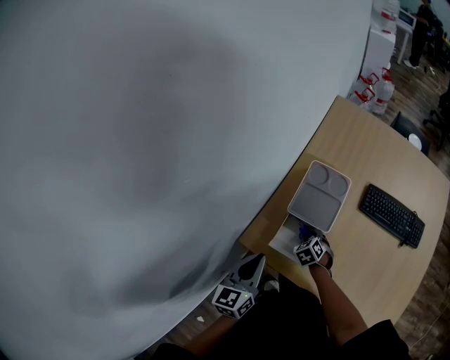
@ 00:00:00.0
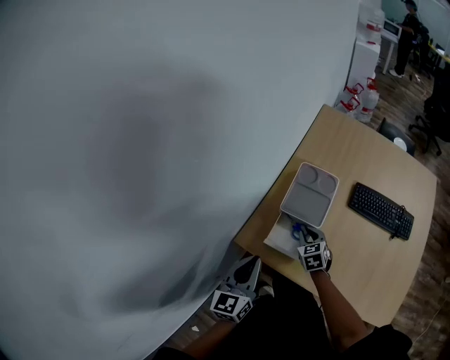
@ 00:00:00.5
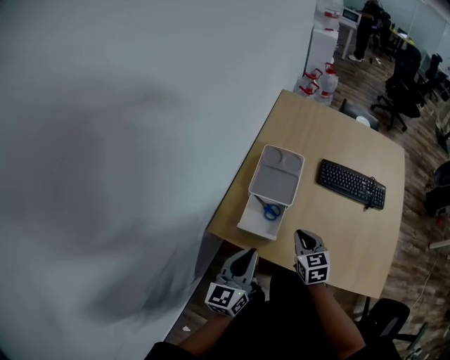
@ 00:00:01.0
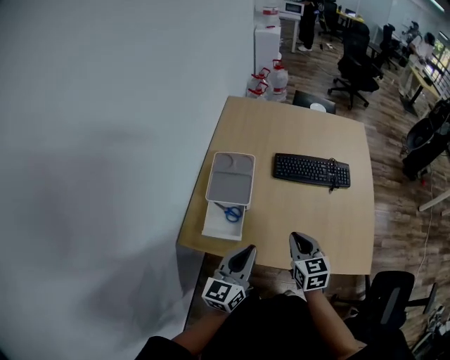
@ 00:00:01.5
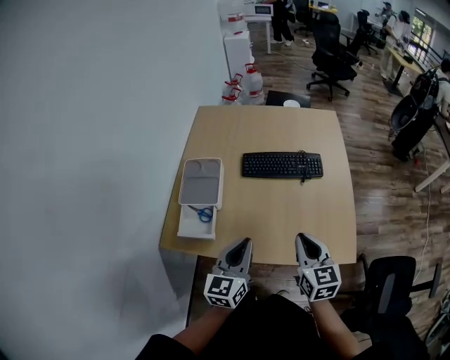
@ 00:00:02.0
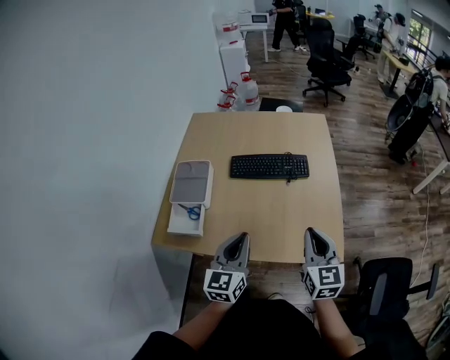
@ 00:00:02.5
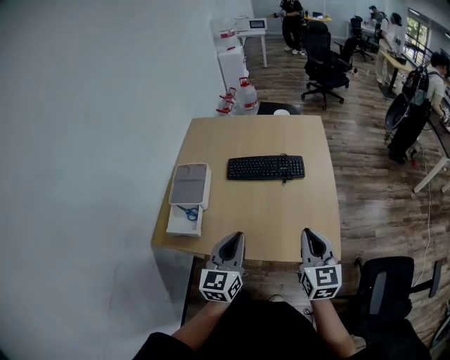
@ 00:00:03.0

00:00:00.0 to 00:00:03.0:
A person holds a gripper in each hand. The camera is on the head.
00:00:00.0 to 00:00:01.5: The left gripper is displaced to the right by some 20 cm, and rotates approximately 30 degrees; the right gripper travels upward, to the right and backward by about 35 cm, and points its fingers approximately 30 degrees further upward.
00:00:01.5 to 00:00:03.0: The left gripper travels to the right by roughly 20 cm, while the right gripper is displaced to the right and upward by roughly 30 cm, and changes its angle by some 20 degrees.

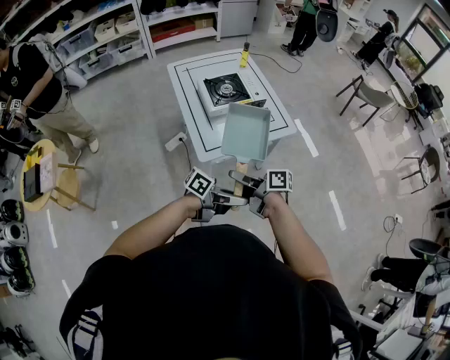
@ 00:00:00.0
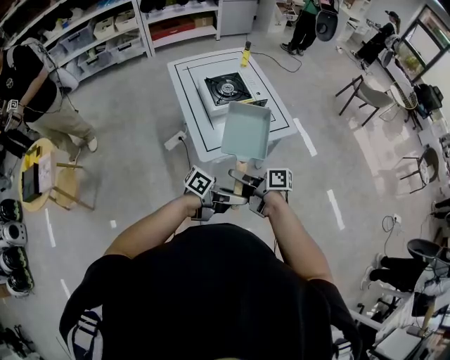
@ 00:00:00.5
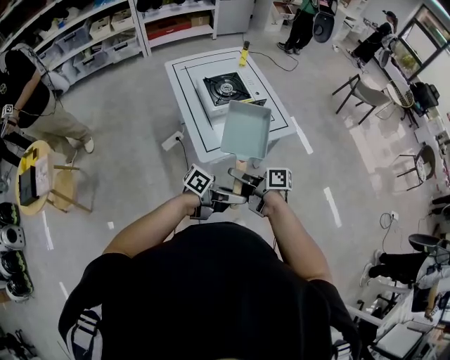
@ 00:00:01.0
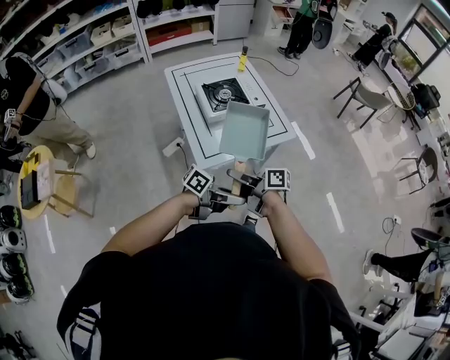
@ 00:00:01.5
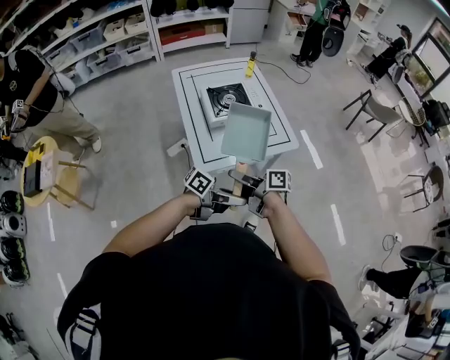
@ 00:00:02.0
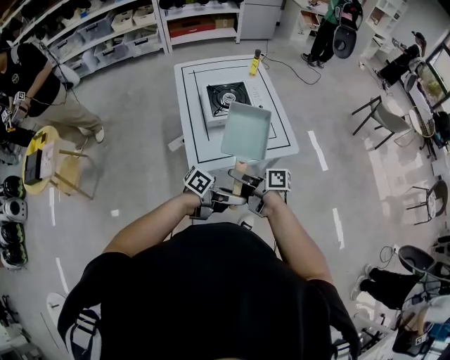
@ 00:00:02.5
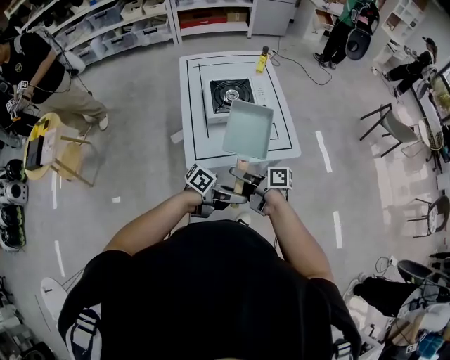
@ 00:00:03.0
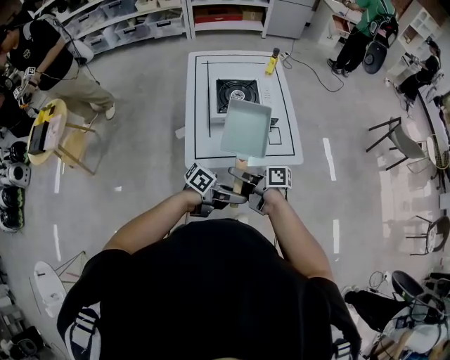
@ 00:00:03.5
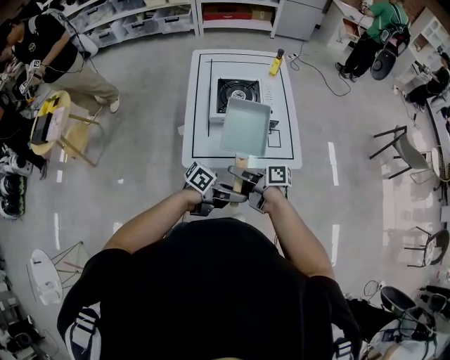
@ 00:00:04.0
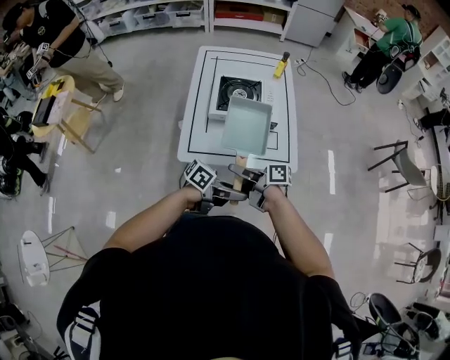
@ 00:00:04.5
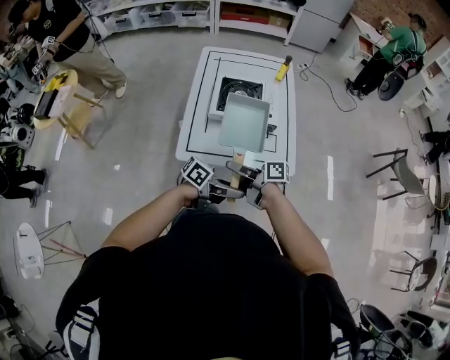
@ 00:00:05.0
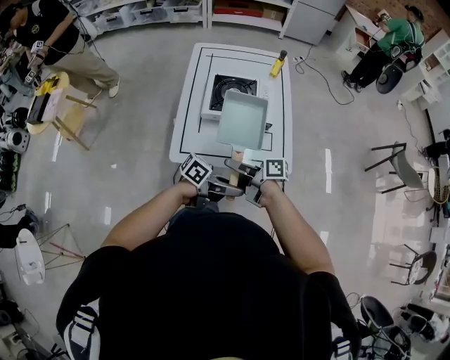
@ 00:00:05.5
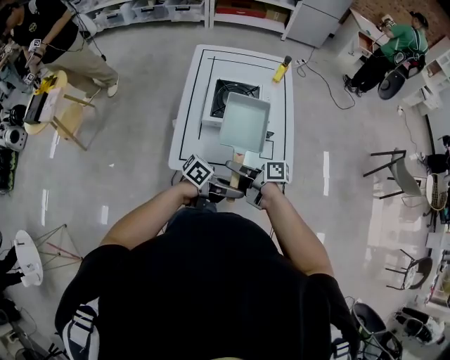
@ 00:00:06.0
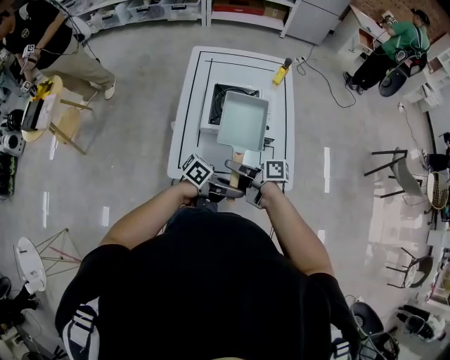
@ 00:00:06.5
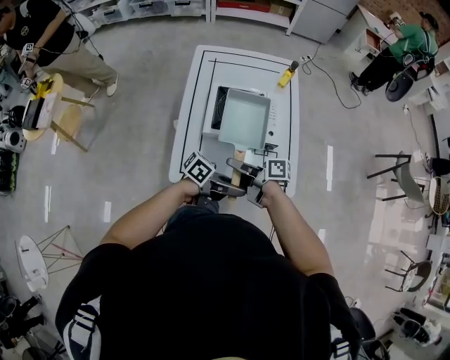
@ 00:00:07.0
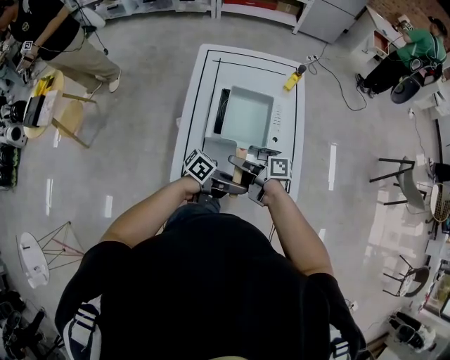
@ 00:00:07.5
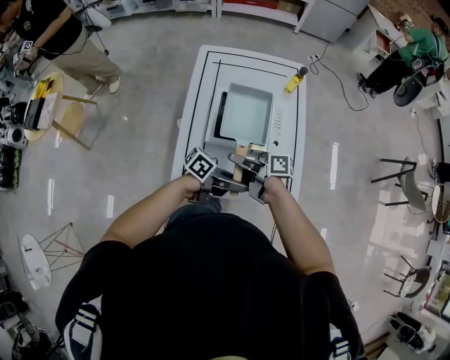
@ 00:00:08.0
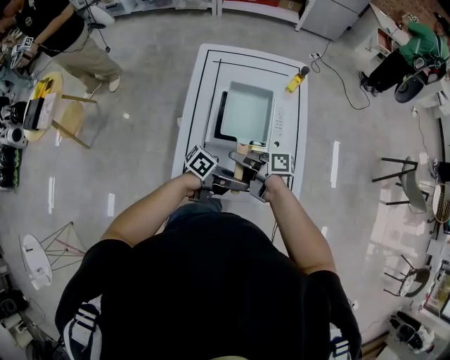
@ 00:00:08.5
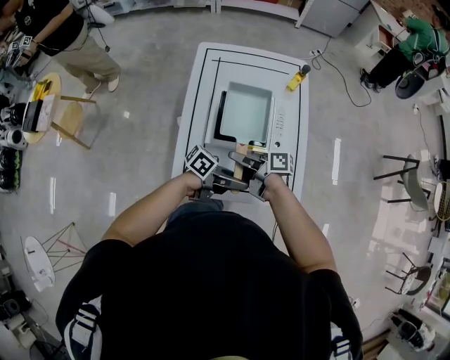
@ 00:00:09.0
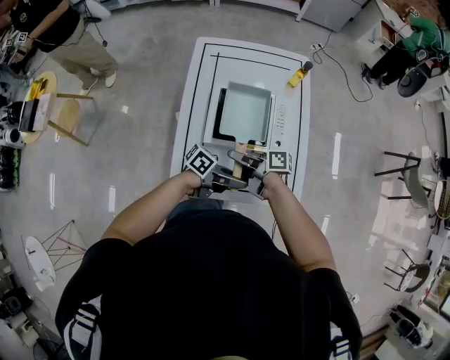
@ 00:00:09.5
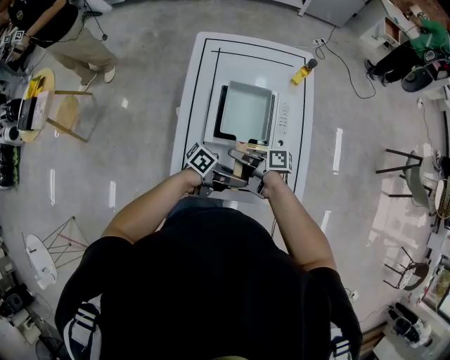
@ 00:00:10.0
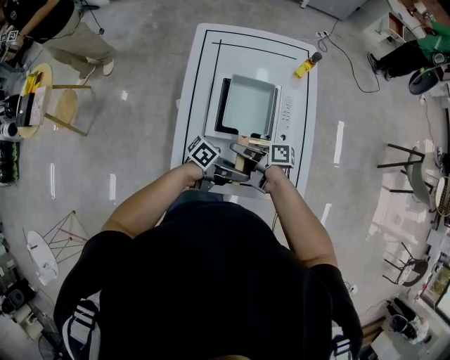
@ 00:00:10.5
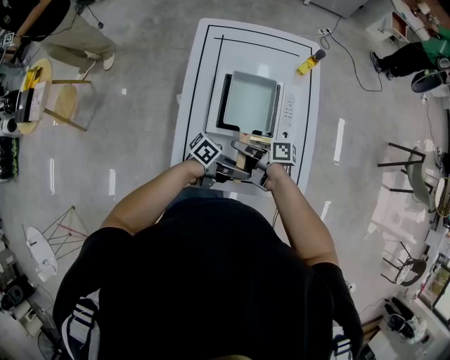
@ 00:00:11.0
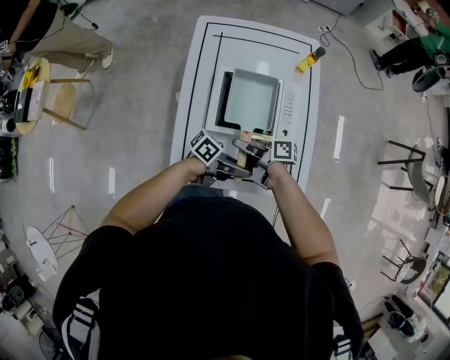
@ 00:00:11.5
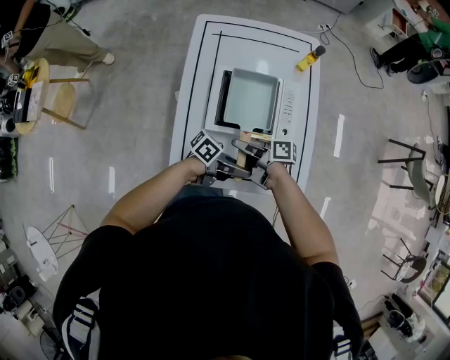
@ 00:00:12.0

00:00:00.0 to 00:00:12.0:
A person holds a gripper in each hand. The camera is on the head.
00:00:00.0 to 00:00:02.0: The left gripper changes place by about 5 cm.
00:00:02.0 to 00:00:04.0: The left gripper ends up roughly 15 cm from where it was.
00:00:04.0 to 00:00:06.0: The left gripper ends up roughly 10 cm from where it was.
00:00:06.0 to 00:00:08.0: The left gripper shifts by about 15 cm.
00:00:08.0 to 00:00:10.0: The left gripper moves about 5 cm.

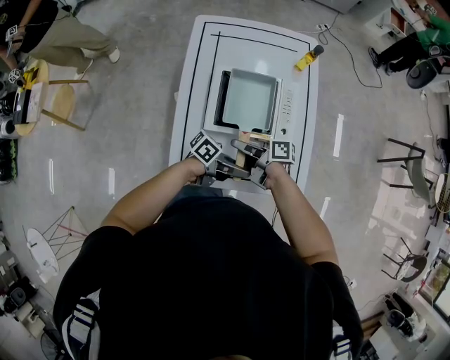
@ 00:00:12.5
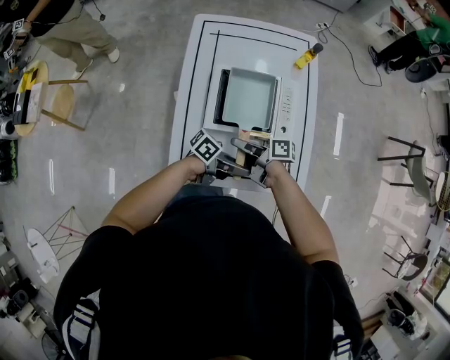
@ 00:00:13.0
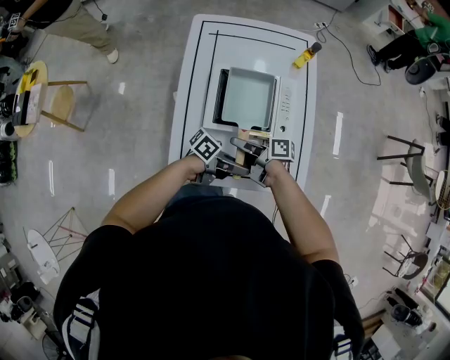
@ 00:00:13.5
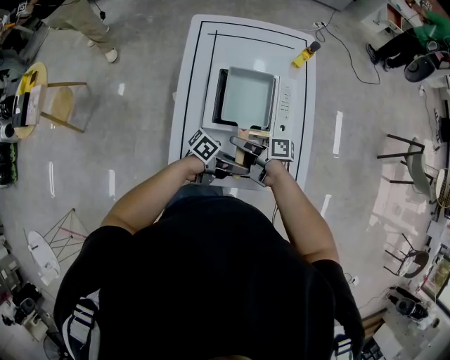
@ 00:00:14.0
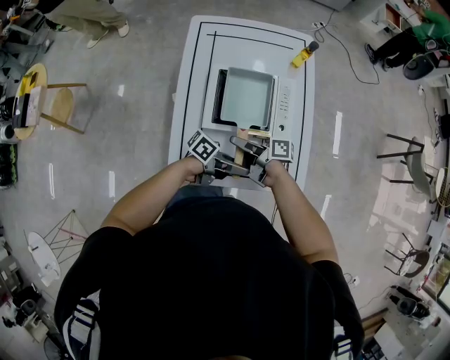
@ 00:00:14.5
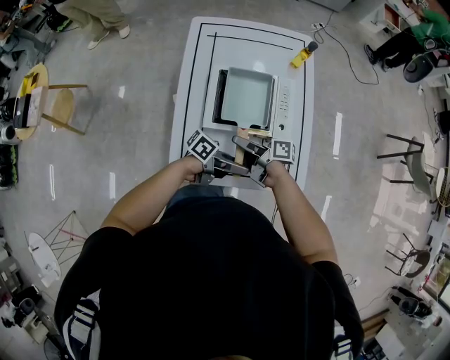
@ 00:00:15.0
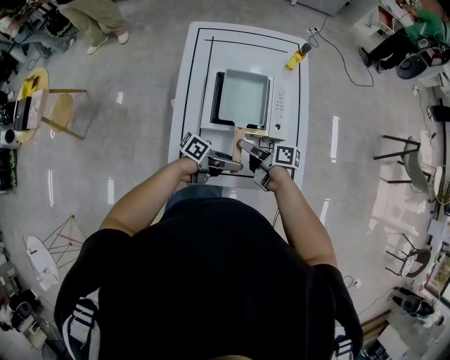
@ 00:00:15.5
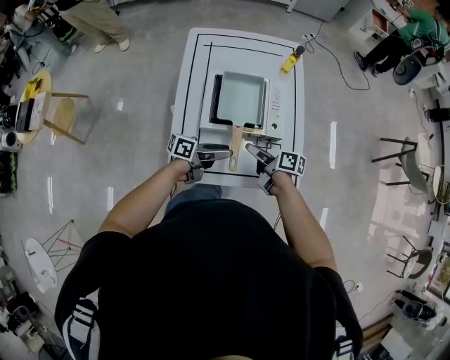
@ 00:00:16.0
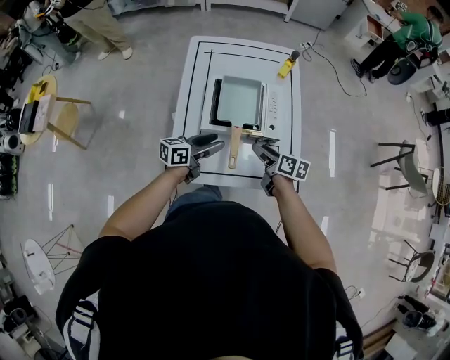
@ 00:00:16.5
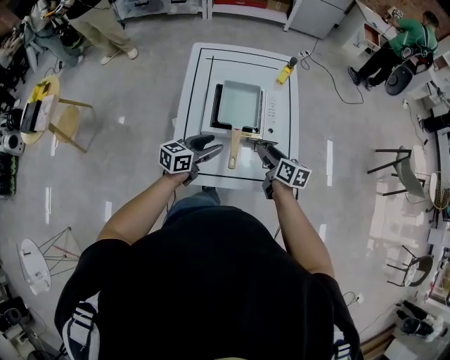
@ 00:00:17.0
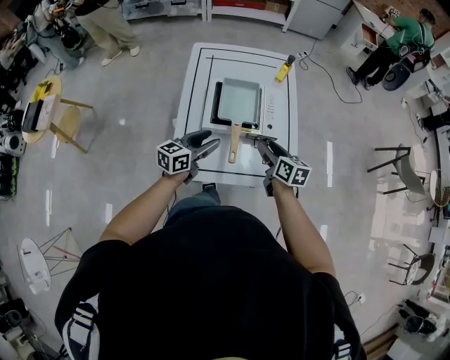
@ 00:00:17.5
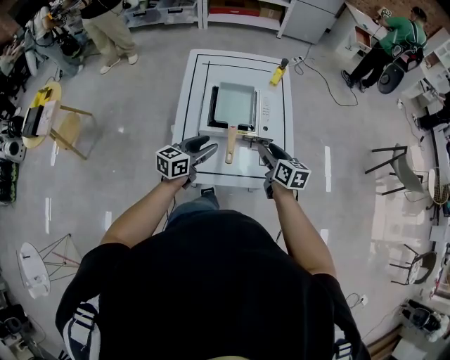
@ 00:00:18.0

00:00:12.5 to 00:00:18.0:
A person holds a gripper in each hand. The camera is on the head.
00:00:14.5 to 00:00:16.0: The left gripper moves roughly 5 cm, and swivels about 20 degrees.
00:00:16.0 to 00:00:18.0: The left gripper moves upward, some 5 cm, and turns by about 50 degrees.

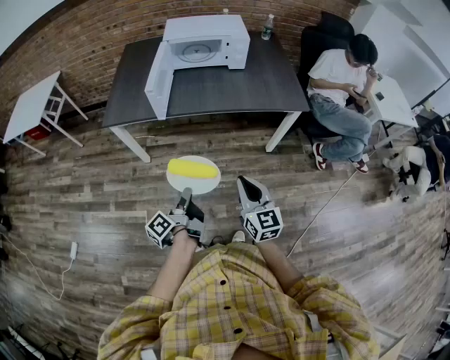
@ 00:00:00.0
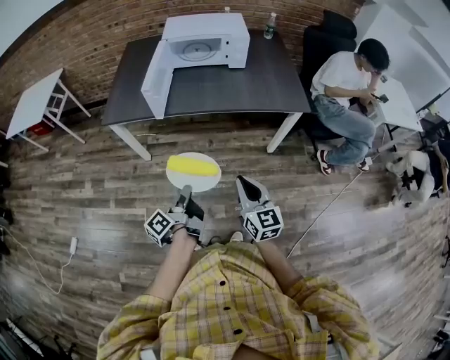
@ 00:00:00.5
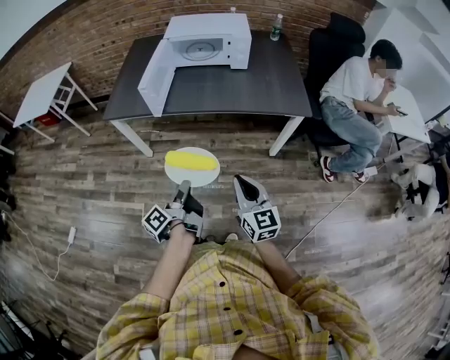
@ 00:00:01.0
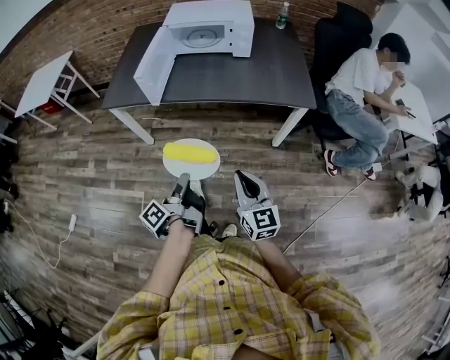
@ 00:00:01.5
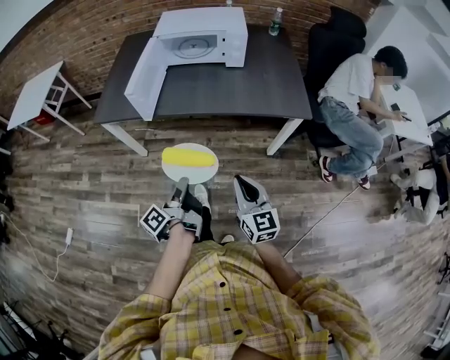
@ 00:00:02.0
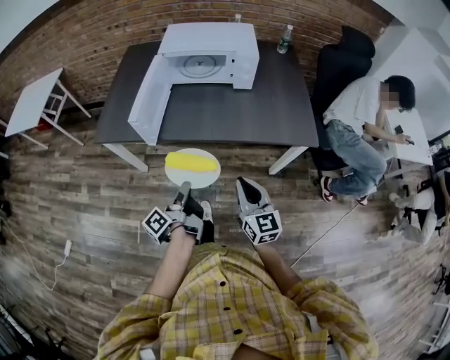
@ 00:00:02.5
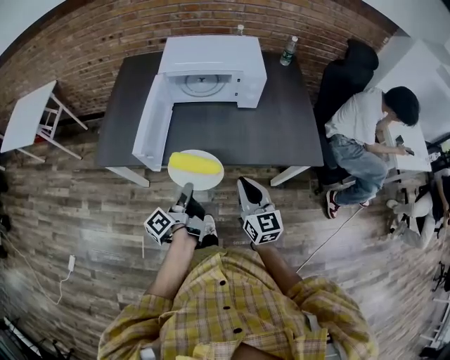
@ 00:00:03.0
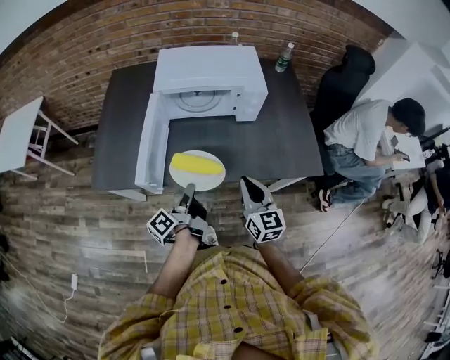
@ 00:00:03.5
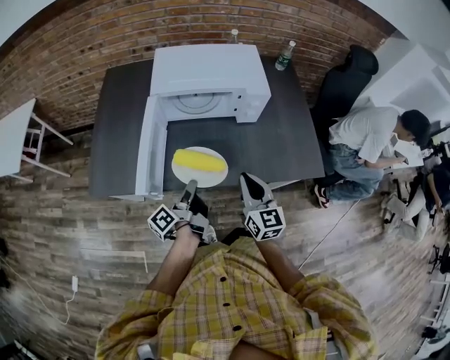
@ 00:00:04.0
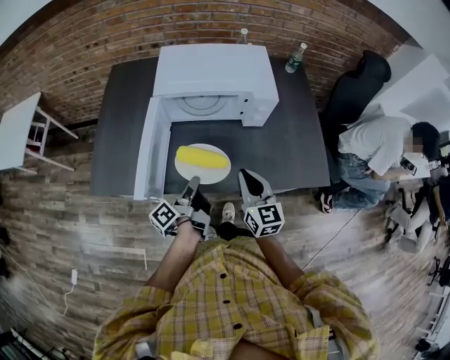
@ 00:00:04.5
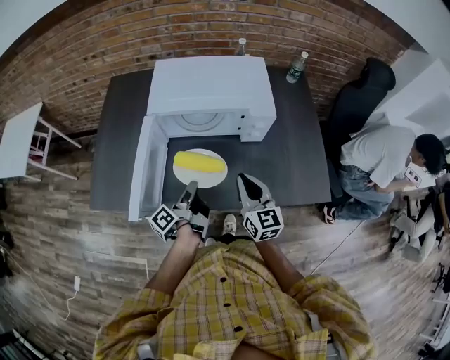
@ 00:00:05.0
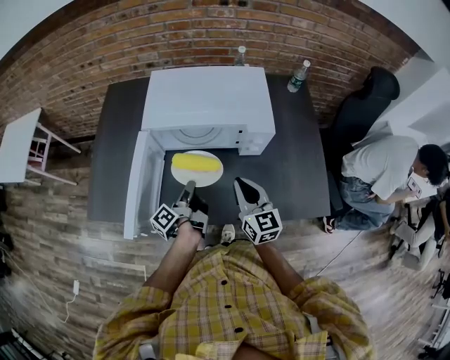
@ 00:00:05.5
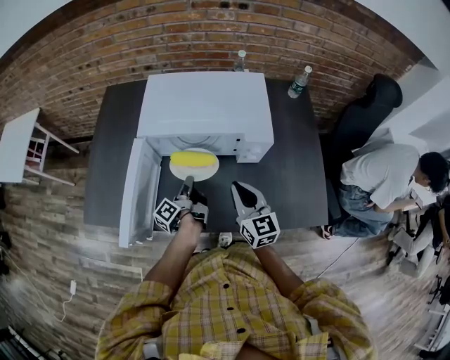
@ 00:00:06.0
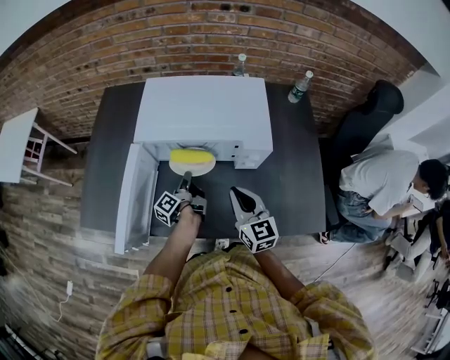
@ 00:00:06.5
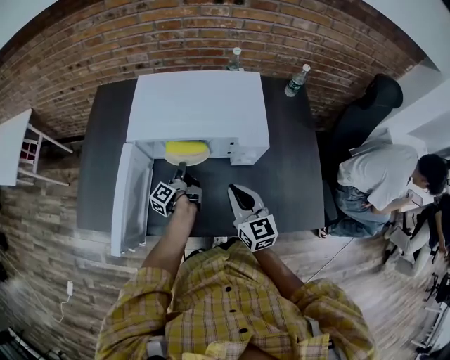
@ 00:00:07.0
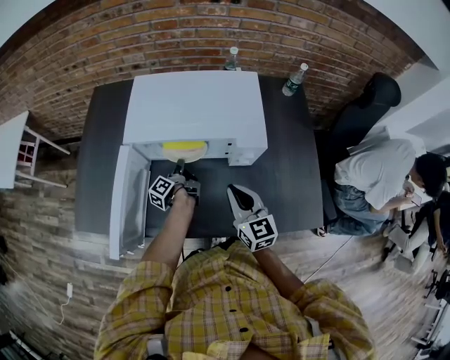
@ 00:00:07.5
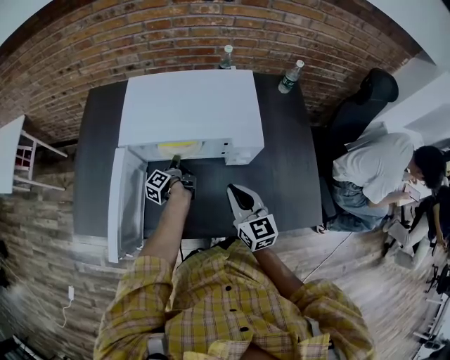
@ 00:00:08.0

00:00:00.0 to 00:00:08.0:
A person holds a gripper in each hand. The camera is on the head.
00:00:00.0 to 00:00:02.0: The right gripper ends up some 10 cm from where it was.
00:00:02.0 to 00:00:04.0: The right gripper changes place by roughly 35 cm.
00:00:04.0 to 00:00:06.0: The right gripper moves about 15 cm.
